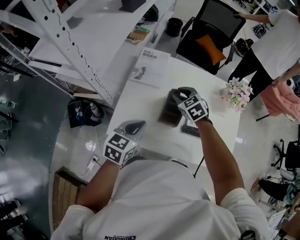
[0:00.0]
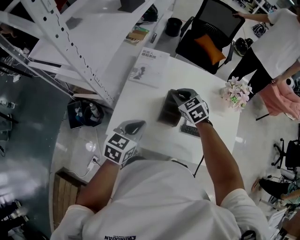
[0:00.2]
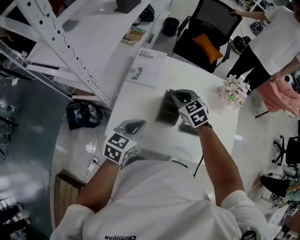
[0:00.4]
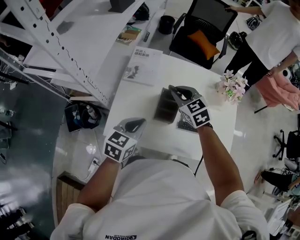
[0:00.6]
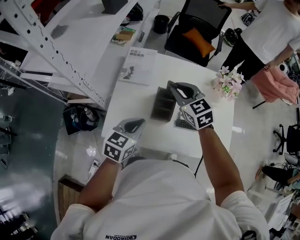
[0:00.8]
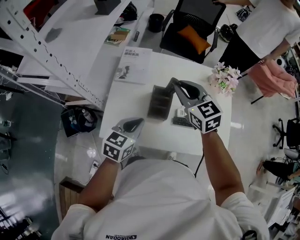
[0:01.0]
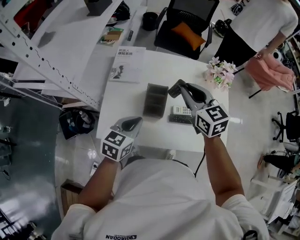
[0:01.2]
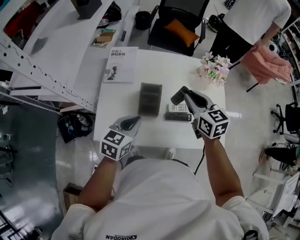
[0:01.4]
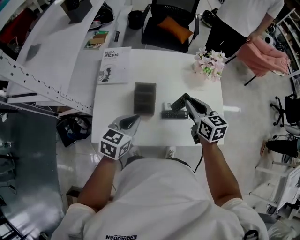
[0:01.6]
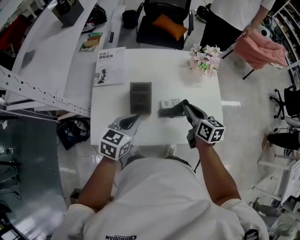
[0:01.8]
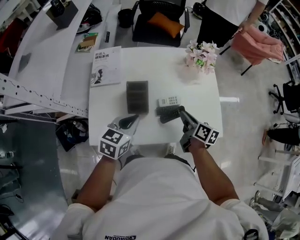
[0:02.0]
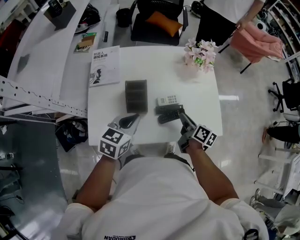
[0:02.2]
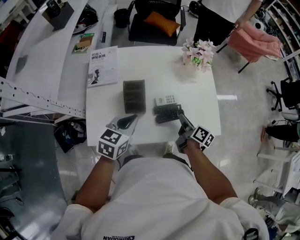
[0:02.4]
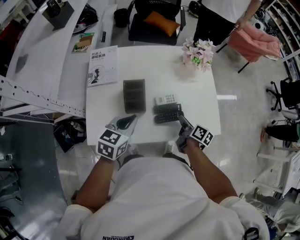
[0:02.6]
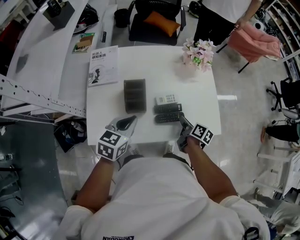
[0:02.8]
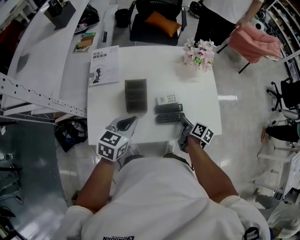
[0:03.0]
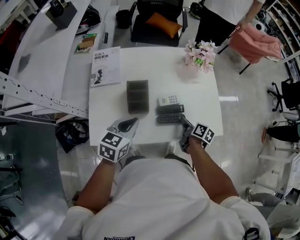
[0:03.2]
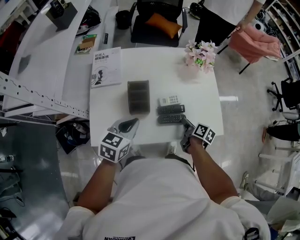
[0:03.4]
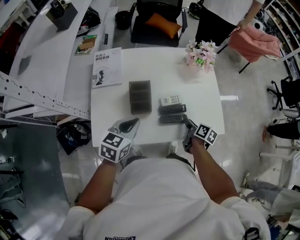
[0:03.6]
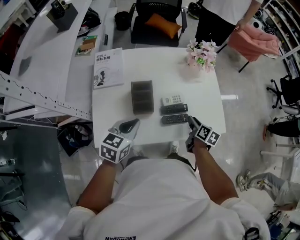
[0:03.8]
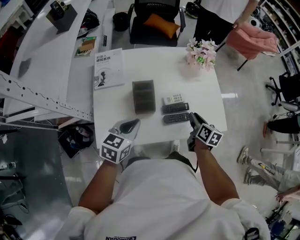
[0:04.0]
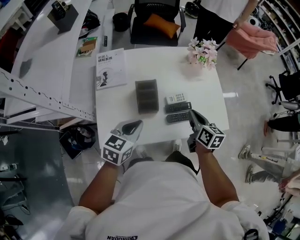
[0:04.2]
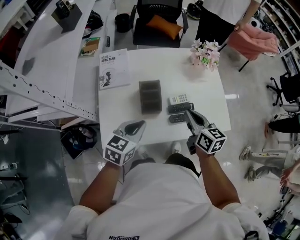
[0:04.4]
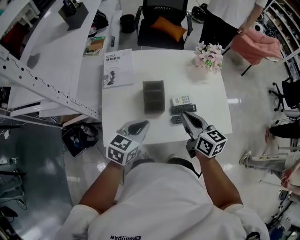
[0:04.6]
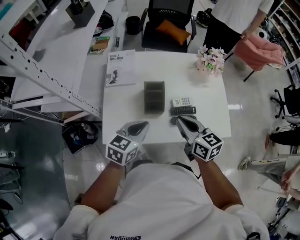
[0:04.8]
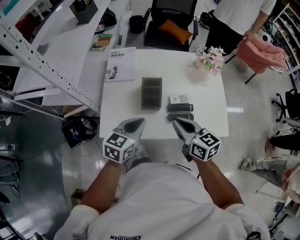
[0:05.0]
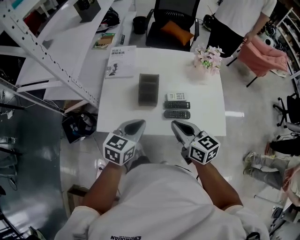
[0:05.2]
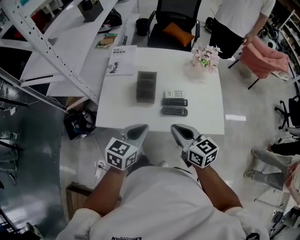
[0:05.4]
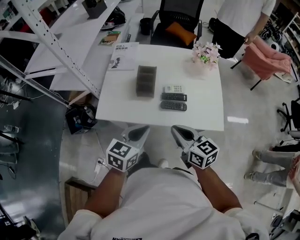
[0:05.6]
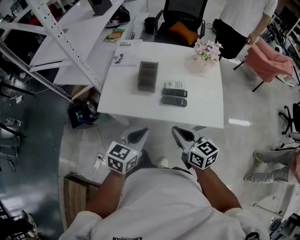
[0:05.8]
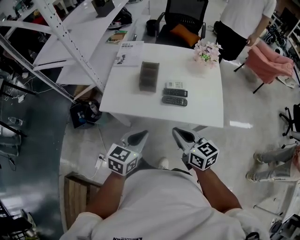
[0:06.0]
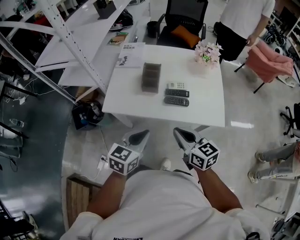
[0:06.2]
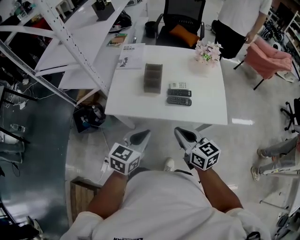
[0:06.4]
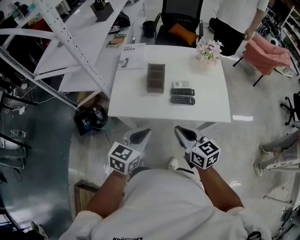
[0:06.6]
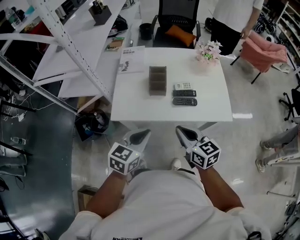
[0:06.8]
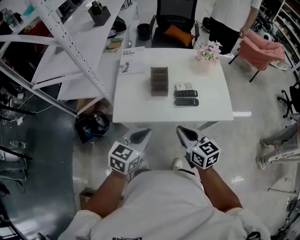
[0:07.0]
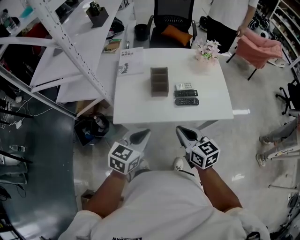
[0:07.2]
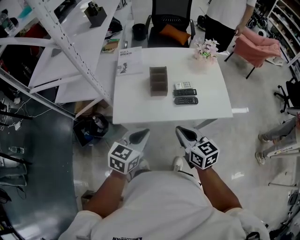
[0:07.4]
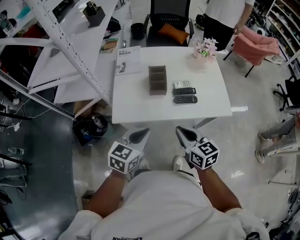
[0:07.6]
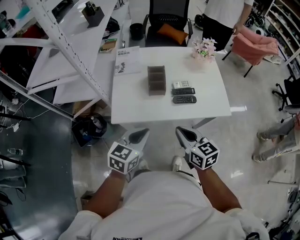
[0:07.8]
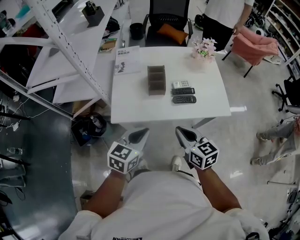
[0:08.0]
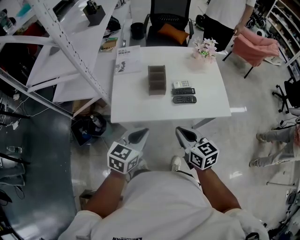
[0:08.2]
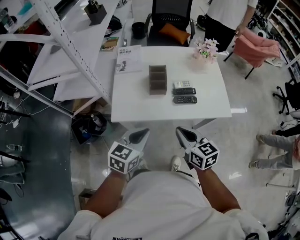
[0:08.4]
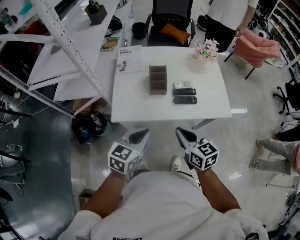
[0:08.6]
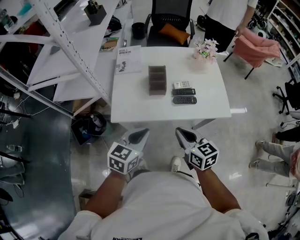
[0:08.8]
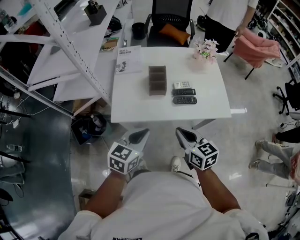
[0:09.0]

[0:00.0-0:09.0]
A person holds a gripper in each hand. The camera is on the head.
0.0 to 1.6 s: The right gripper moves to the right and backward, some 25 cm, and twists some 40 degrees clockwise, seen from behind; the left gripper shifts approximately 10 cm to the right.
1.6 to 3.0 s: The right gripper moves downward and to the right, approximately 20 cm, and twists approximately 50 degrees clockwise, seen from behind.
3.0 to 4.4 s: The right gripper is displaced upward and to the left by some 20 cm, rotates approximately 40 degrees, and closes its fingers.
4.4 to 6.0 s: The right gripper moves backward, about 25 cm, and swivels about 30 degrees; the left gripper heads backward and to the right, covering roughly 25 cm.
6.0 to 7.6 s: Both grippers move to the left, approximately 10 cm.
7.6 to 9.0 s: The two grippers keep their place.

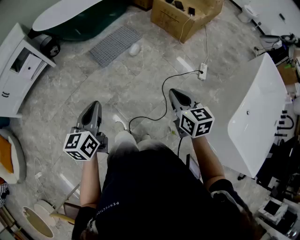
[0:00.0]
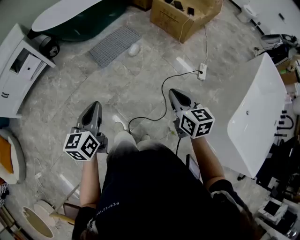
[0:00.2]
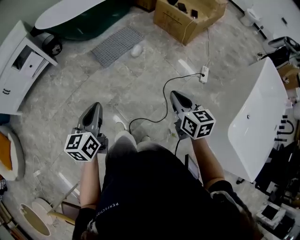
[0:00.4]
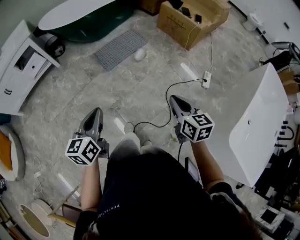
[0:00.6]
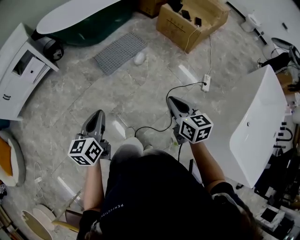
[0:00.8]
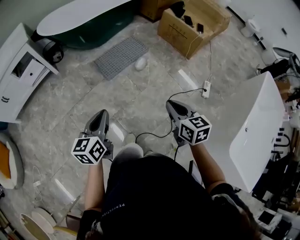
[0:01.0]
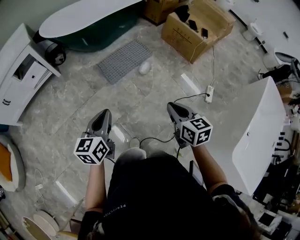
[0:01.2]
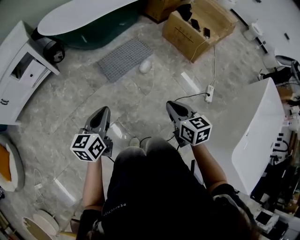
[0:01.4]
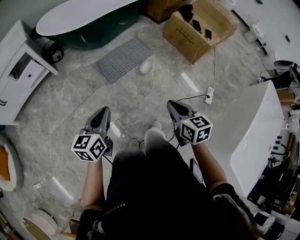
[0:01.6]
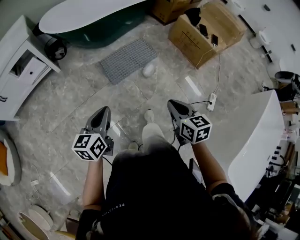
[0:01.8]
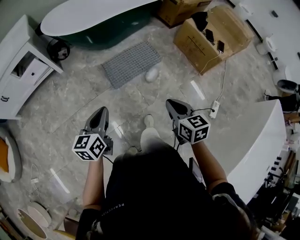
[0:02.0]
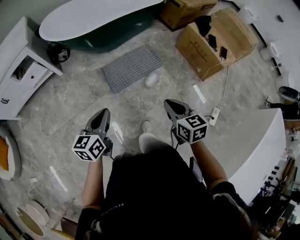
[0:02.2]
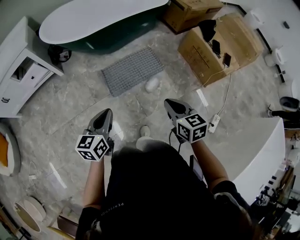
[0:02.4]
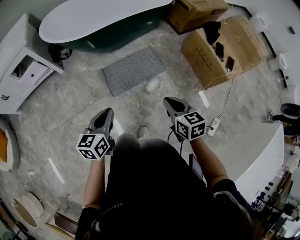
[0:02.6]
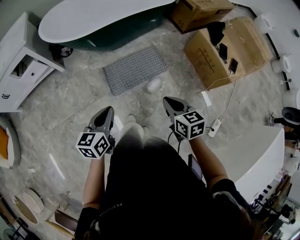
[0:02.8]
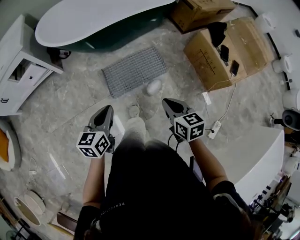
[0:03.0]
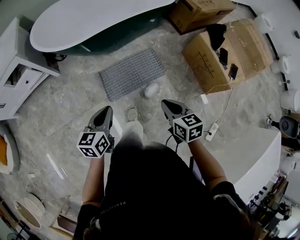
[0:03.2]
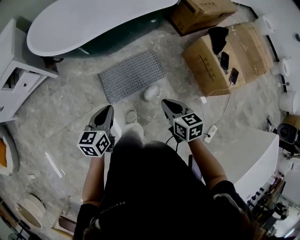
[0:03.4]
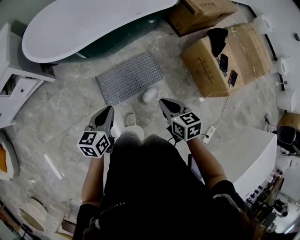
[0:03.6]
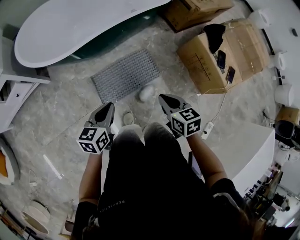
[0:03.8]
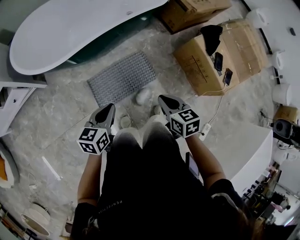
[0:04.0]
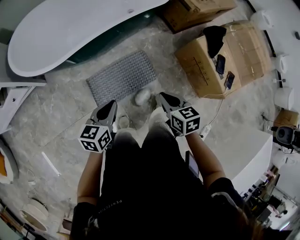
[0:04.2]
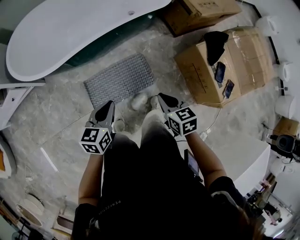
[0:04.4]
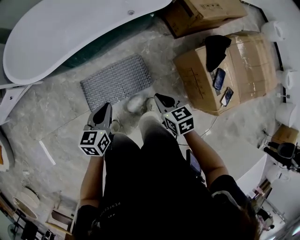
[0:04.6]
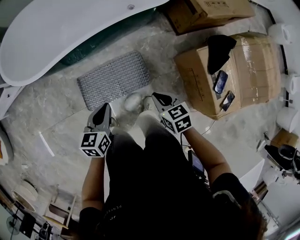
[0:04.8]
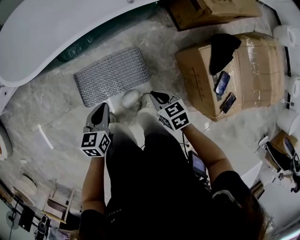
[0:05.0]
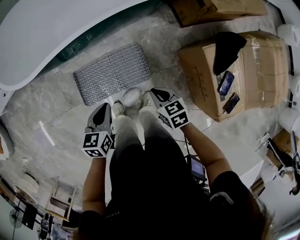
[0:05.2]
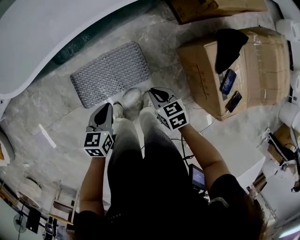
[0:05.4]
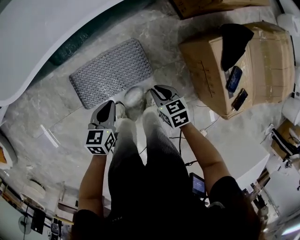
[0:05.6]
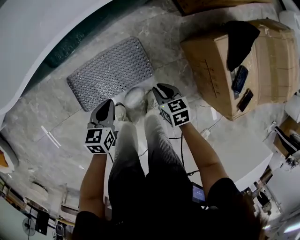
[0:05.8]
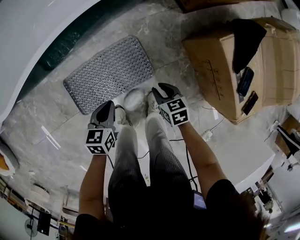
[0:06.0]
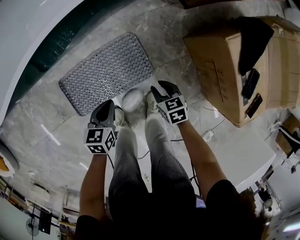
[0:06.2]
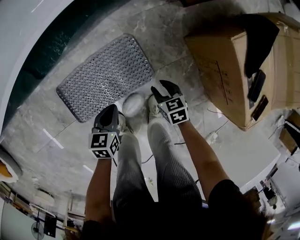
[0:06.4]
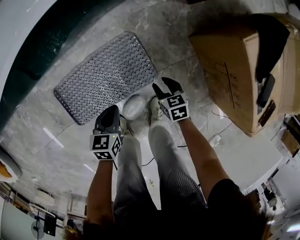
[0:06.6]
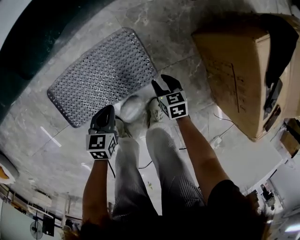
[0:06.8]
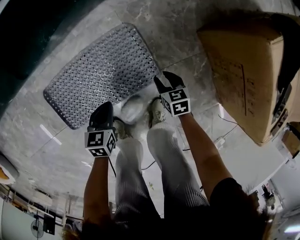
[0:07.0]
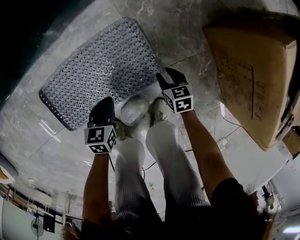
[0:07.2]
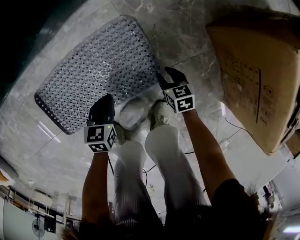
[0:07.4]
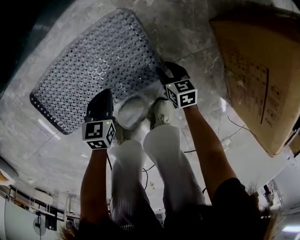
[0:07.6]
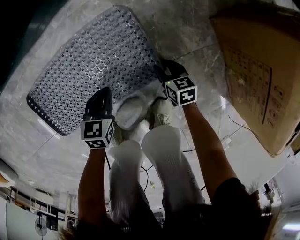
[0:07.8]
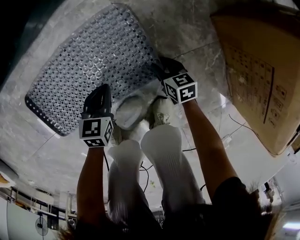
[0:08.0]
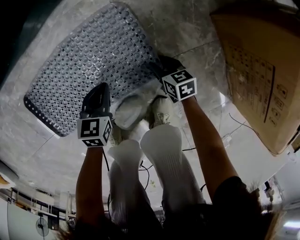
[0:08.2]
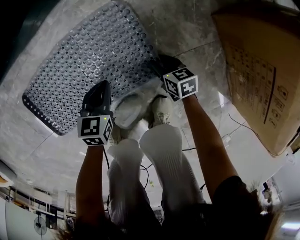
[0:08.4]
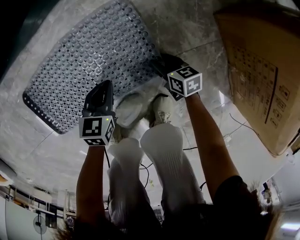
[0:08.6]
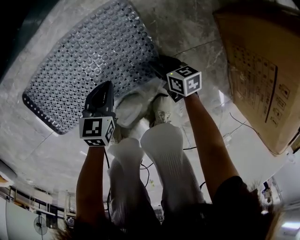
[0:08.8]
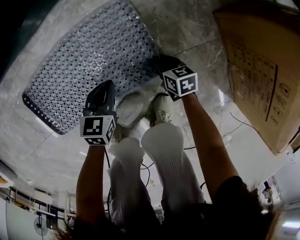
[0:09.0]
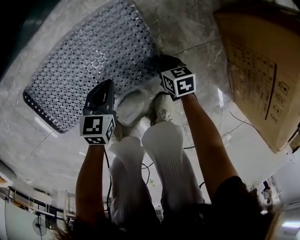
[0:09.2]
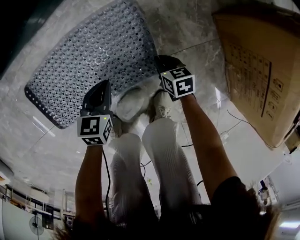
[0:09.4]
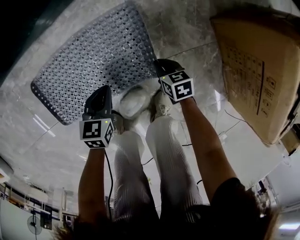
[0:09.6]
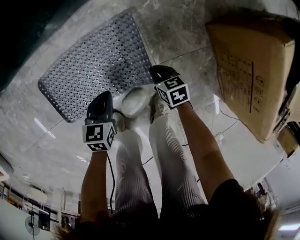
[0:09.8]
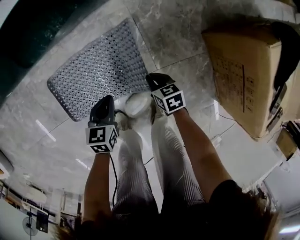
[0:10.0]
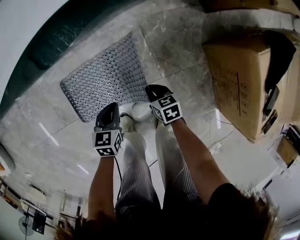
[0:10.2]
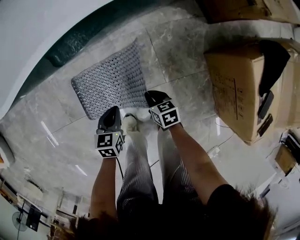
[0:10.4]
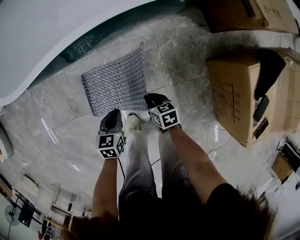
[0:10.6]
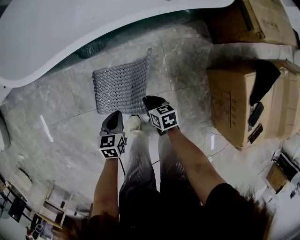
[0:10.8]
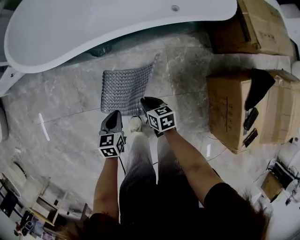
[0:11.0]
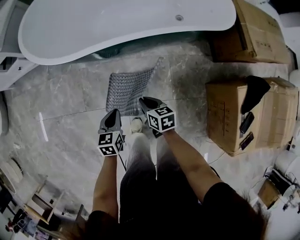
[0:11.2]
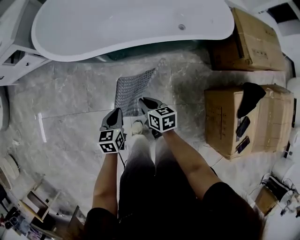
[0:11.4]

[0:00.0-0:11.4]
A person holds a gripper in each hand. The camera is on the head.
0.0 to 1.4 s: Both grippers move forward and to the left, roughly 20 cm.
1.4 to 2.8 s: The left gripper heads forward and to the right, covering about 30 cm. Meanwhile the right gripper is displaced forward by about 35 cm.
2.8 to 4.2 s: Both grippers travel together forward, about 25 cm.
4.2 to 5.6 s: The grippers both shift downward, to the right and forward by about 25 cm.
5.6 to 7.2 s: Both grippers move downward, approximately 40 cm. The right gripper opens up.
7.2 to 8.6 s: The two grippers go roughly 10 cm downward.
8.6 to 10.0 s: Both grippers travel together upward and to the left, roughly 15 cm. The right gripper closes.
10.0 to 11.4 s: The two grippers go roughly 40 cm upward and to the left. The left gripper rotates about 30 degrees.

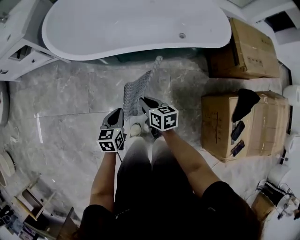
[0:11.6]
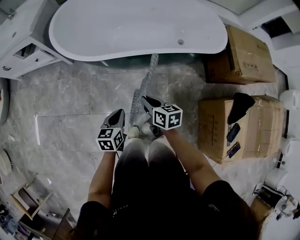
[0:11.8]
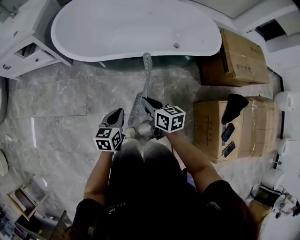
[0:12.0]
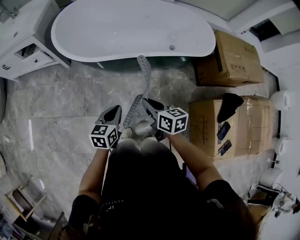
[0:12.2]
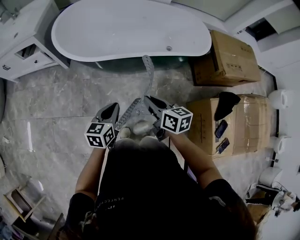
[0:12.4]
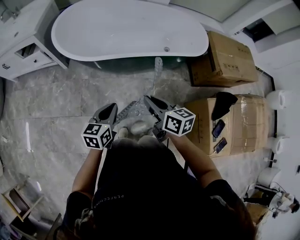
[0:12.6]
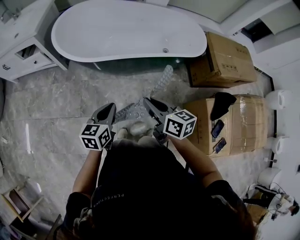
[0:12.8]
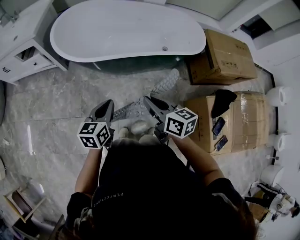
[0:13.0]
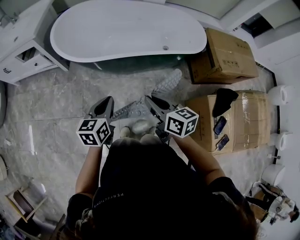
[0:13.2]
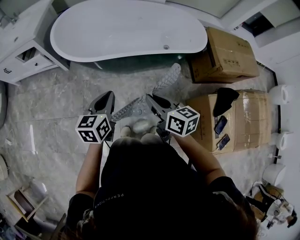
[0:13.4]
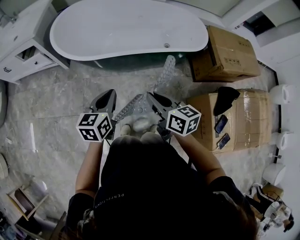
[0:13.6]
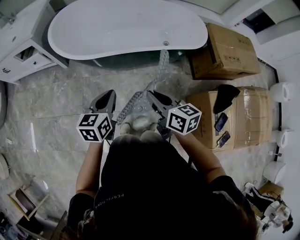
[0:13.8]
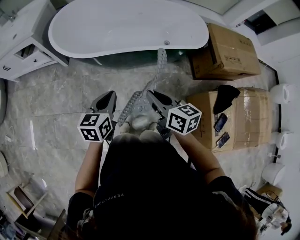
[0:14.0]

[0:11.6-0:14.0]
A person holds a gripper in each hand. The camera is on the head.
11.6 to 12.8 s: Both grippers travel together upward, some 20 cm.
12.8 to 14.0 s: The grippers make only small movements.

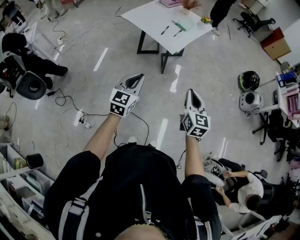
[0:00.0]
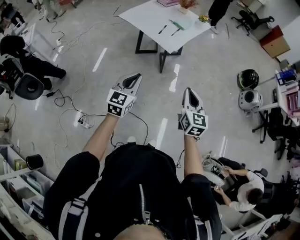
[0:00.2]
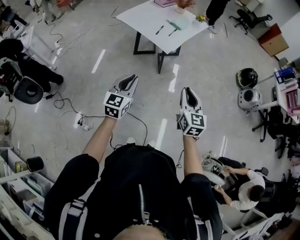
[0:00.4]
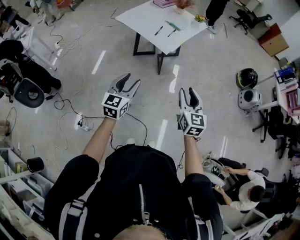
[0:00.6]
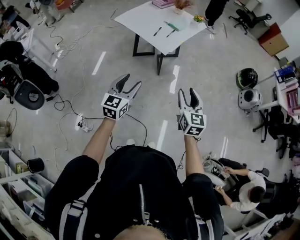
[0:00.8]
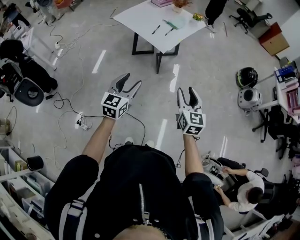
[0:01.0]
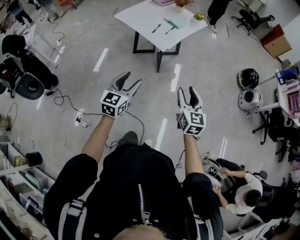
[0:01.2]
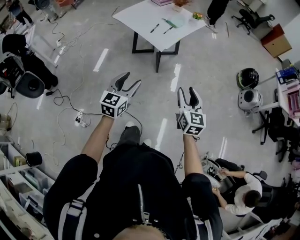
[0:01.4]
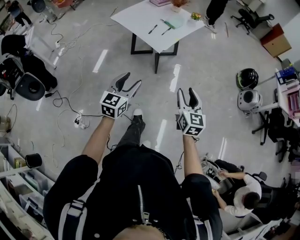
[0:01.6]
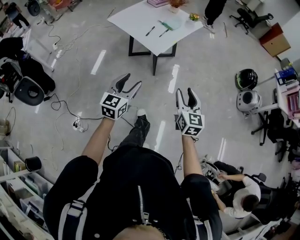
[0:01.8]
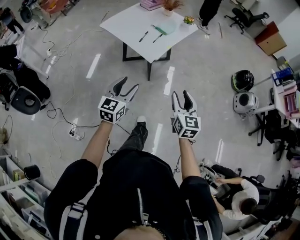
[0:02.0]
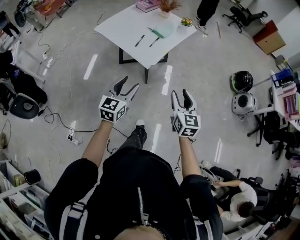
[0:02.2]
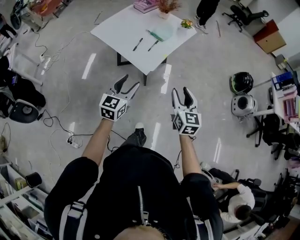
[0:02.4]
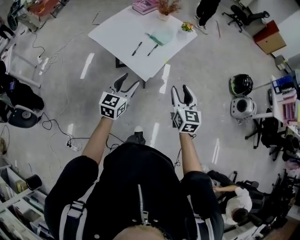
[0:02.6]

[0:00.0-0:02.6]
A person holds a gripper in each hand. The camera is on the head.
0.0 to 1.2 s: Both grippers move to the right, about 5 cm. The left gripper opens up, while the right gripper opens.
1.2 to 2.6 s: Both grippers move forward, some 30 cm.
